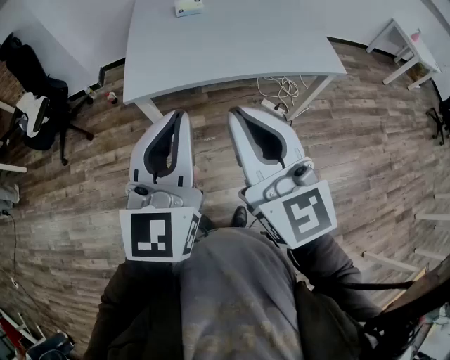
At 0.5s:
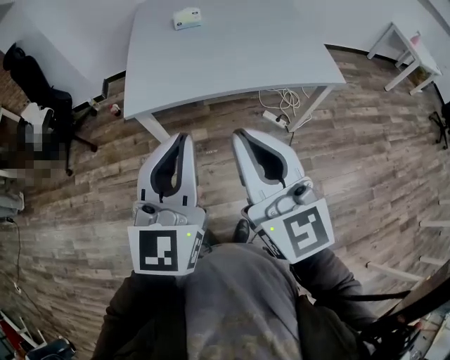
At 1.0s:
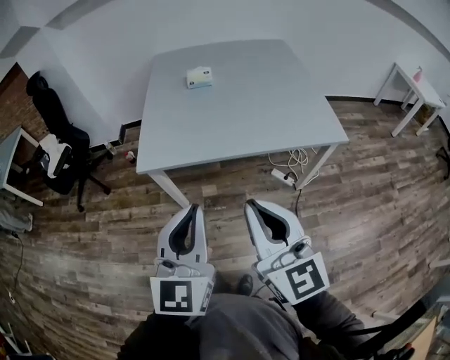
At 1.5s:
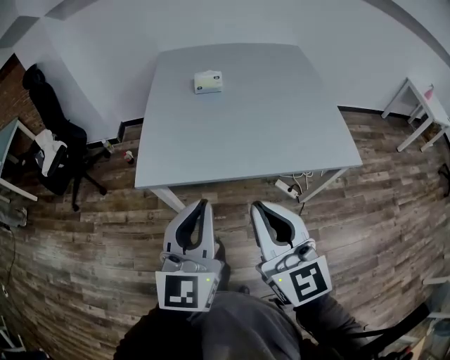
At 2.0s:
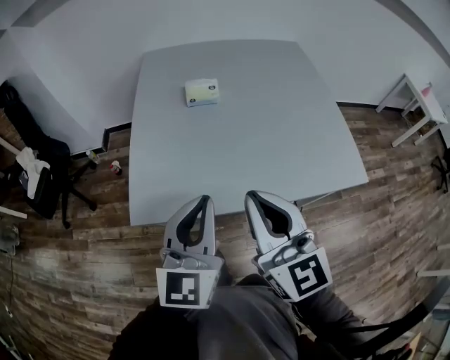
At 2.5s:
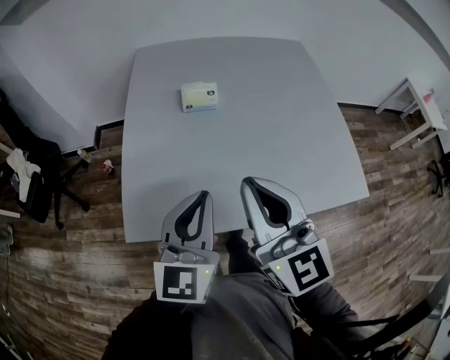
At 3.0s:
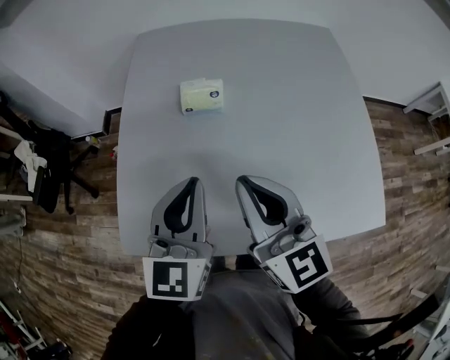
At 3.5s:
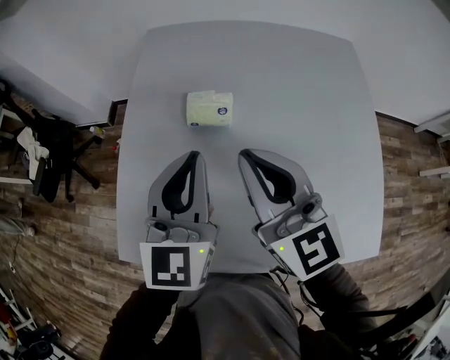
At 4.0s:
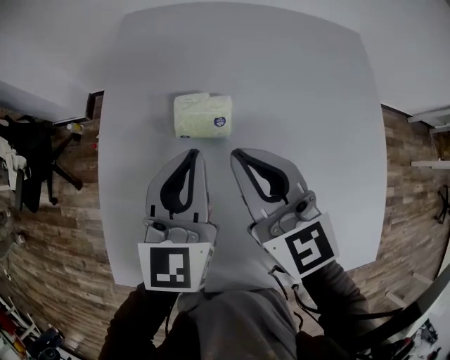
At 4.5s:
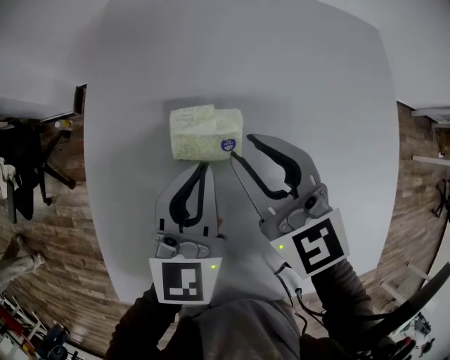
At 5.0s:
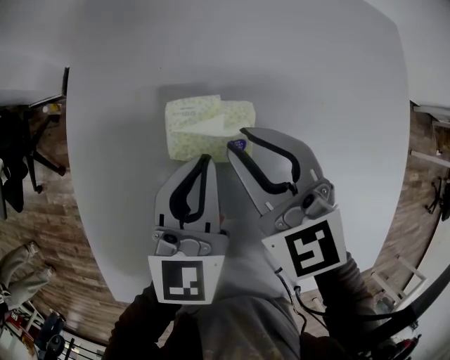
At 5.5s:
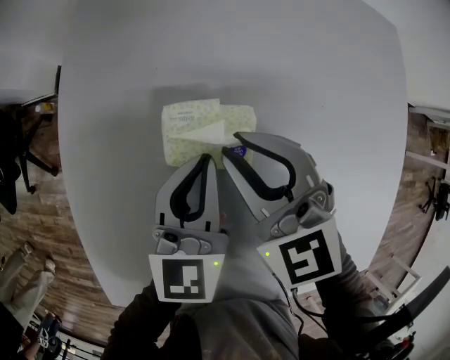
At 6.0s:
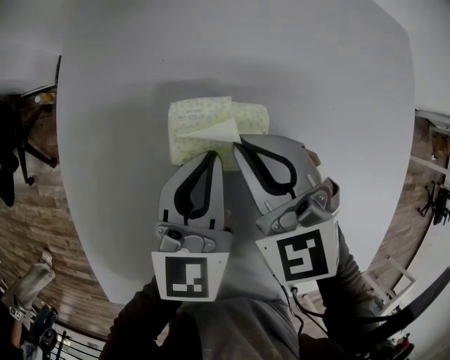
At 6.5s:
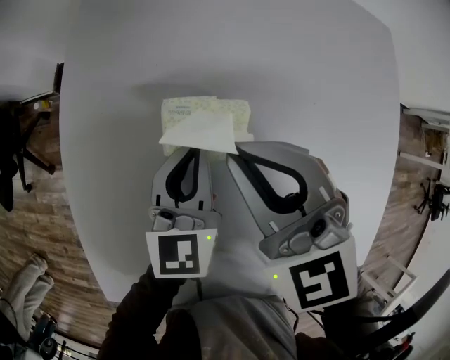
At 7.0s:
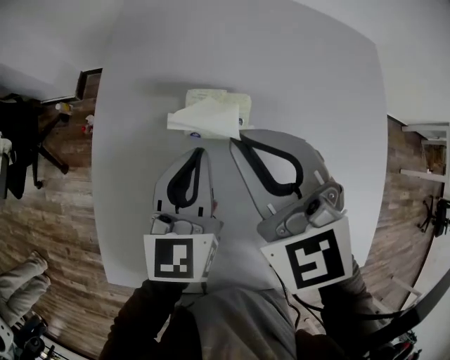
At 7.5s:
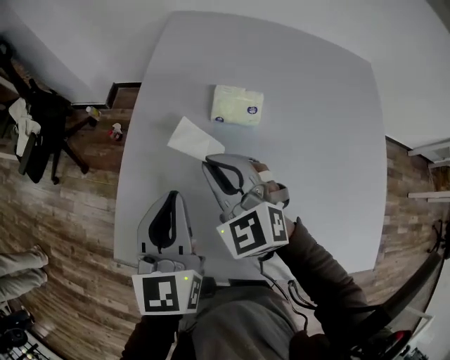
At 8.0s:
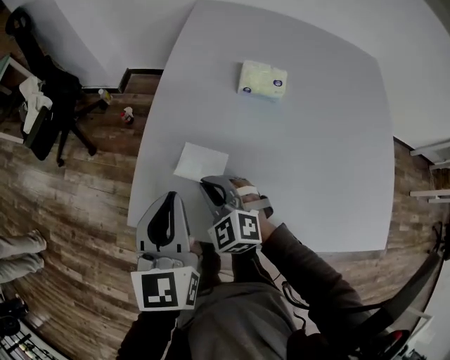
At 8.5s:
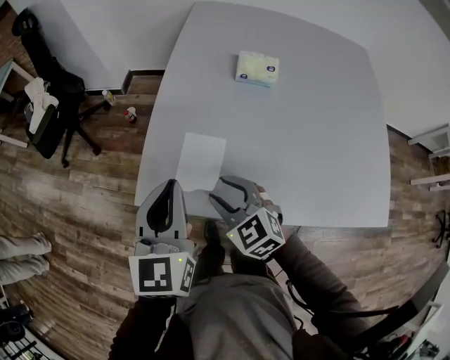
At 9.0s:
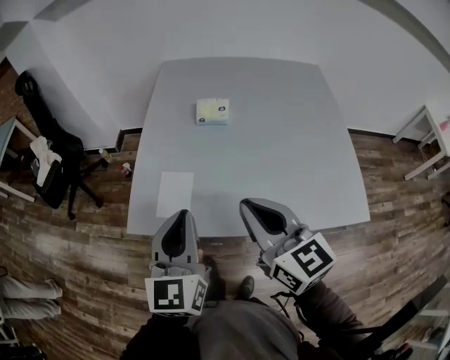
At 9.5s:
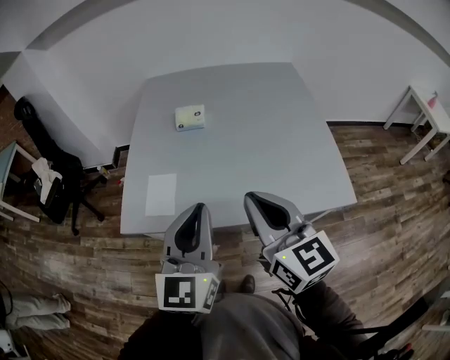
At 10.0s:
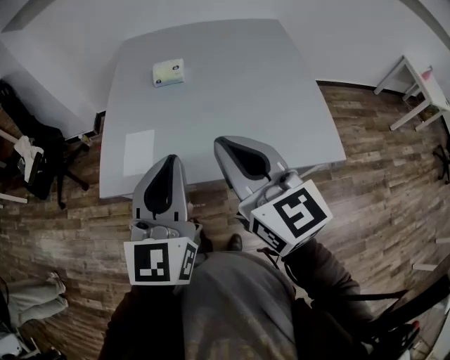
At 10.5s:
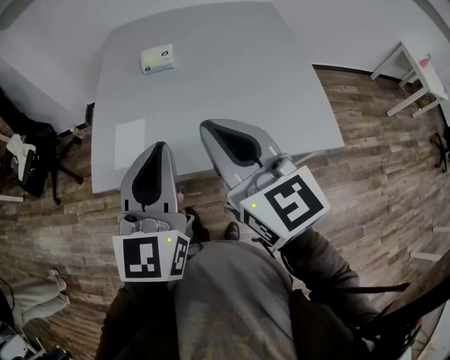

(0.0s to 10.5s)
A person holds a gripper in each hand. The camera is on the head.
0.0s - 2.0s: Both grippers travel together forward, some 35 cm.
2.0s - 4.0s: Both grippers are carried forward, some 50 cm.
4.0s - 6.5s: The left gripper shifts about 20 cm downward and forward, while the right gripper travels forward and downward by roughly 15 cm, and swivels some 30 degrees.
6.5s - 8.5s: The two grippers travel together, backward and to the left, approximately 50 cm. The left gripper moves upward, approximately 15 cm. Meanwhile the right gripper opens its fingers.
8.5s - 10.5s: The left gripper moves to the right, backward and upward, some 30 cm, and swivels about 20 degrees, while the right gripper heads upward, to the right and backward, covering some 40 cm, tilts its fingers roughly 30 degrees upward, and closes.

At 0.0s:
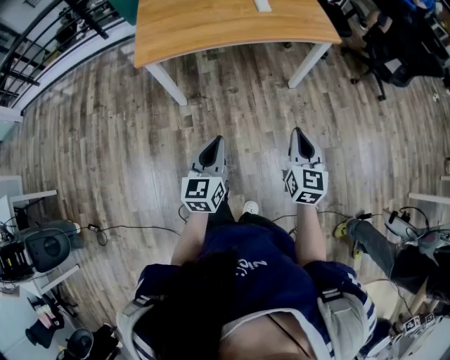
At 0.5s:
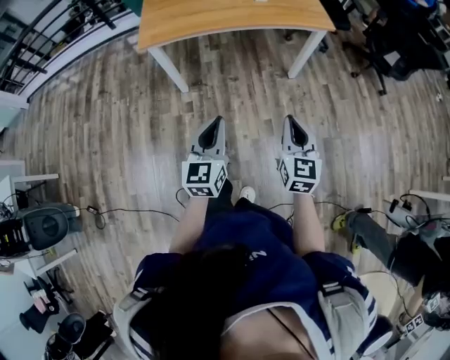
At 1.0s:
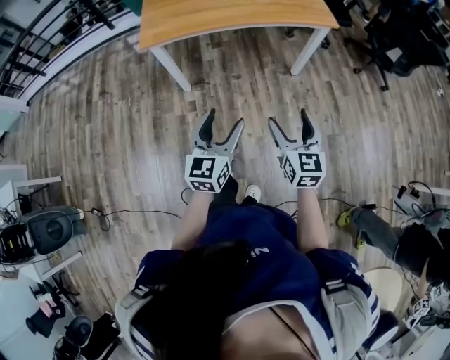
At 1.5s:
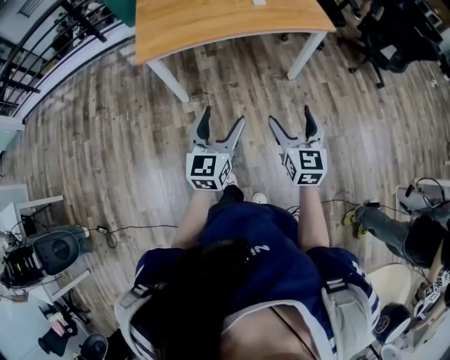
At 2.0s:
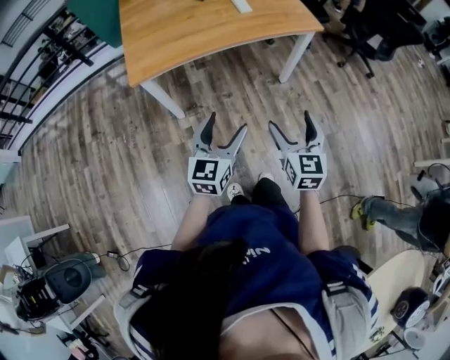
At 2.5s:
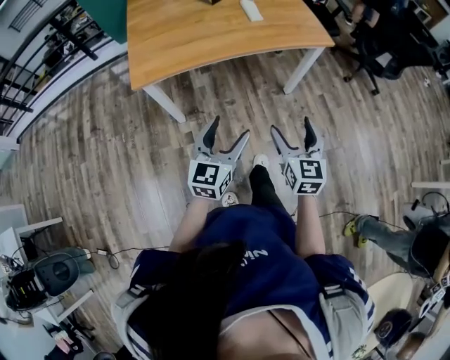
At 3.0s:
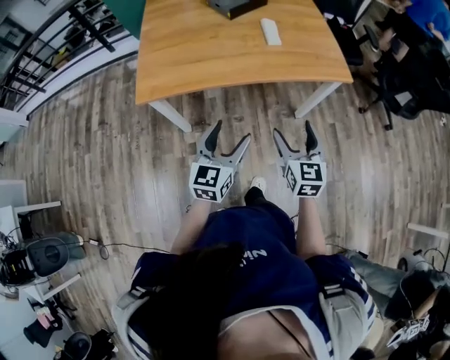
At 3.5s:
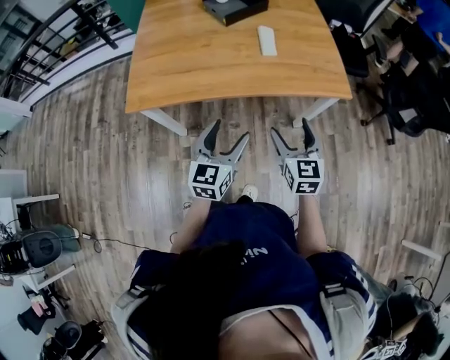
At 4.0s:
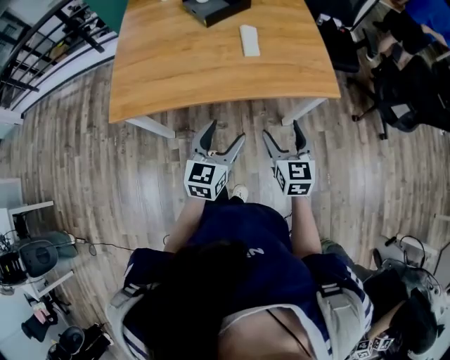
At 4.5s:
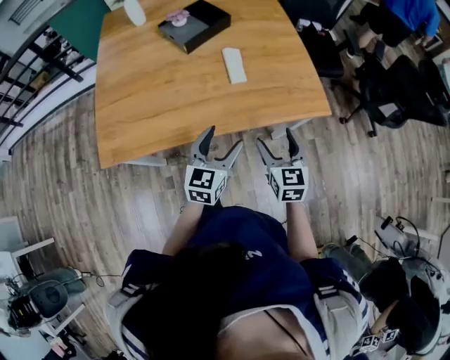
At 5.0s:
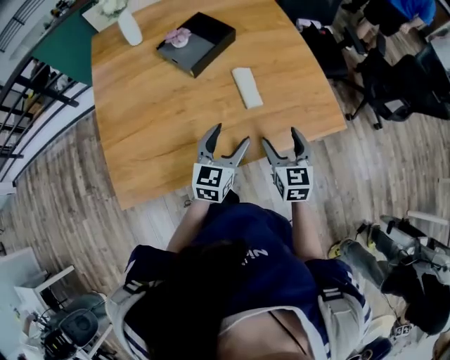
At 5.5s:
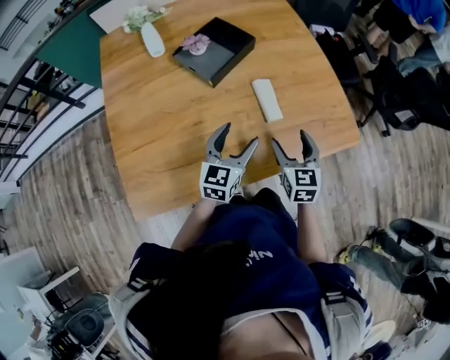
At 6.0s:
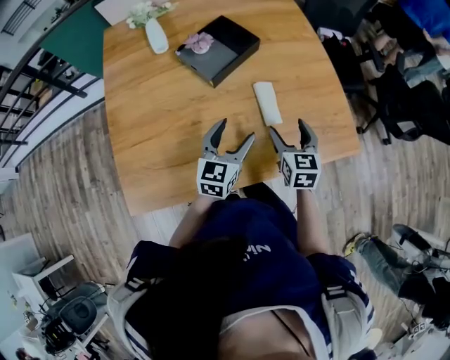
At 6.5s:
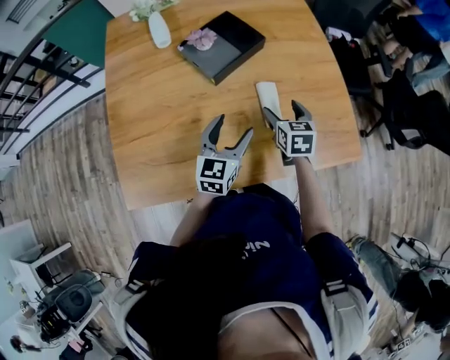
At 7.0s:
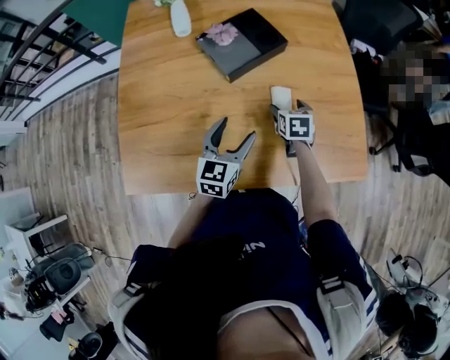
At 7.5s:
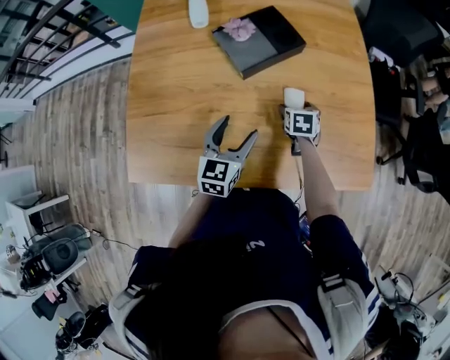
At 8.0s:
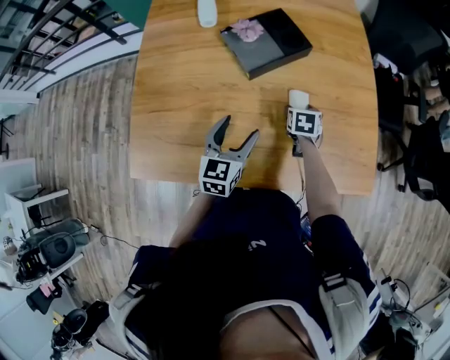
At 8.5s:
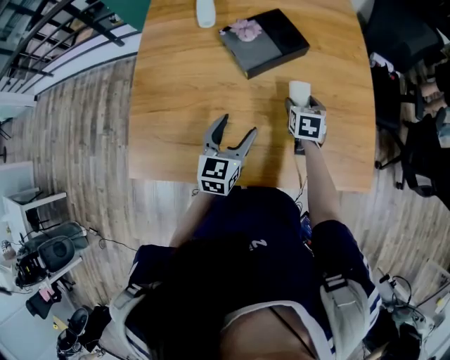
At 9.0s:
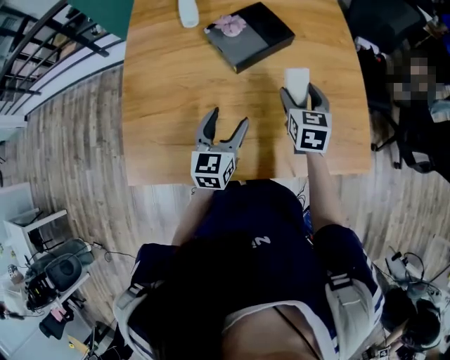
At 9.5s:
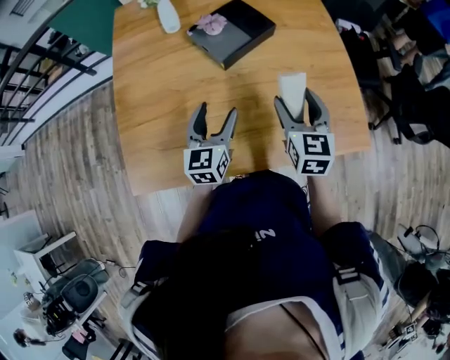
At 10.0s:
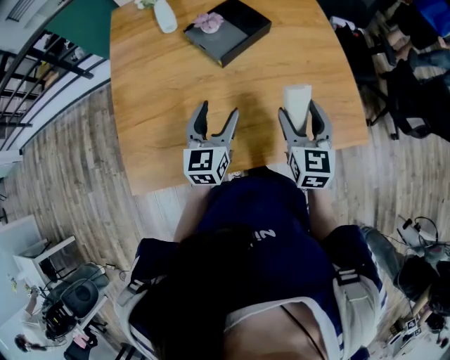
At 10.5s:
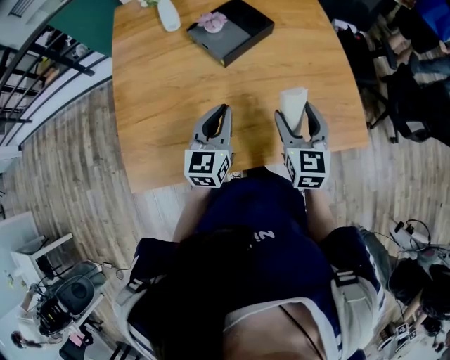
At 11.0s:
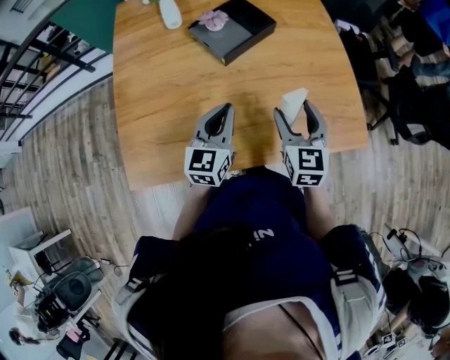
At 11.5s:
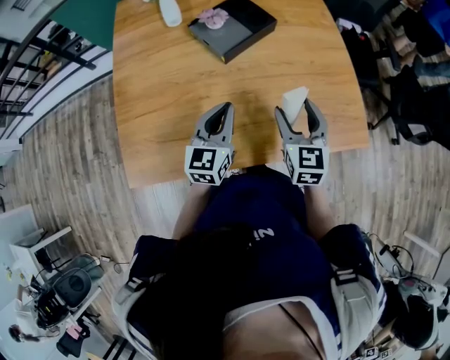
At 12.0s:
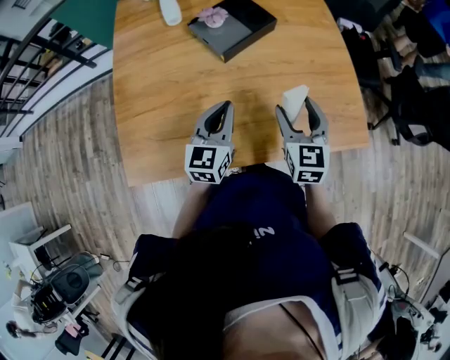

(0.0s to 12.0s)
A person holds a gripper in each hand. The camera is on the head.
0.0s - 2.0s: The right gripper moves to the left, approximately 5 cm, and opens. The left gripper moves some 5 cm, and opens.
2.0s - 4.0s: The two grippers go some 30 cm forward.
4.0s - 6.0s: The grippers both shift forward and to the left by some 35 cm.
6.0s - 8.0s: The right gripper shifts approximately 20 cm downward and forward, and tilts its fingers some 30 degrees downward. Meanwhile the left gripper changes place by about 5 cm.
8.0s - 10.0s: The right gripper moves upward and backward, some 25 cm, and tilts its fingers approximately 40 degrees upward. The left gripper changes place by about 5 cm.
10.0s - 12.0s: The left gripper closes its fingers.

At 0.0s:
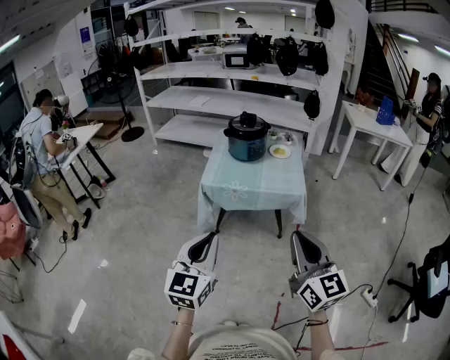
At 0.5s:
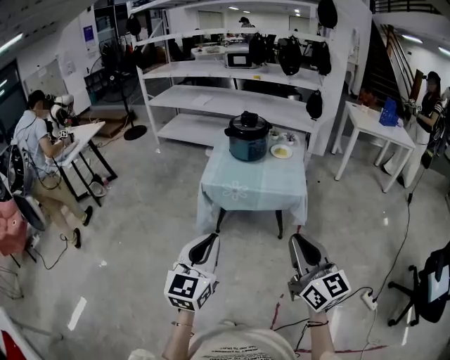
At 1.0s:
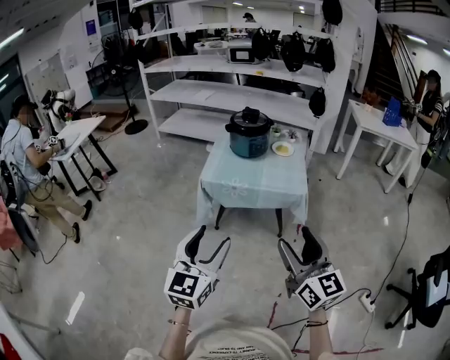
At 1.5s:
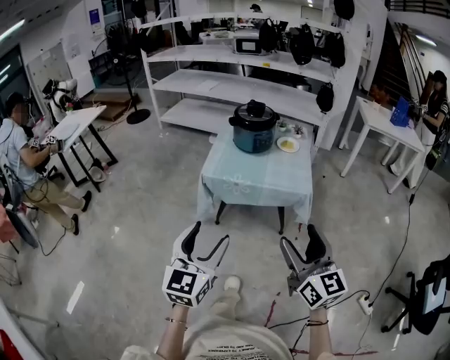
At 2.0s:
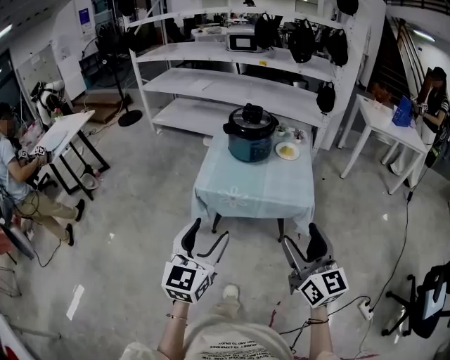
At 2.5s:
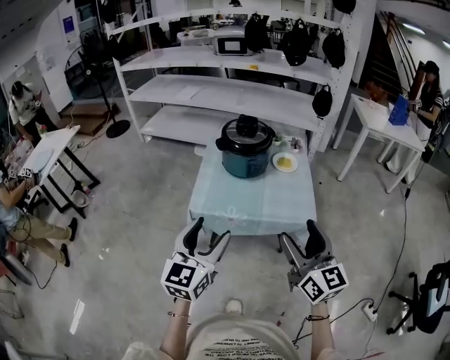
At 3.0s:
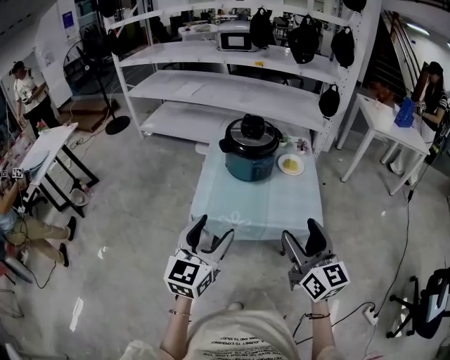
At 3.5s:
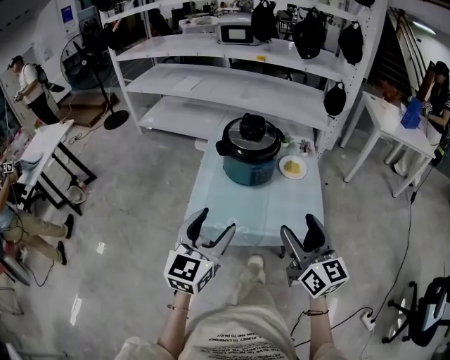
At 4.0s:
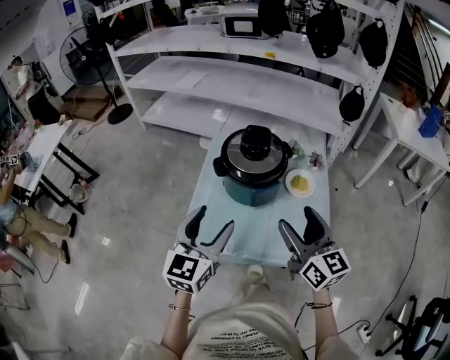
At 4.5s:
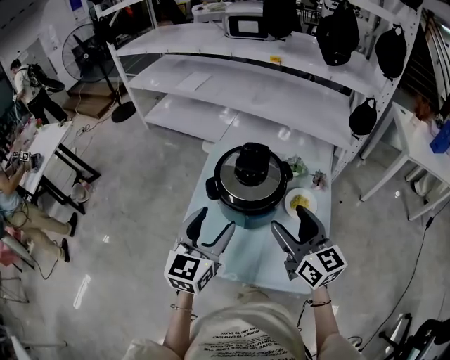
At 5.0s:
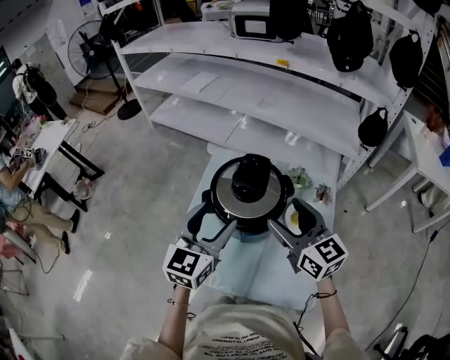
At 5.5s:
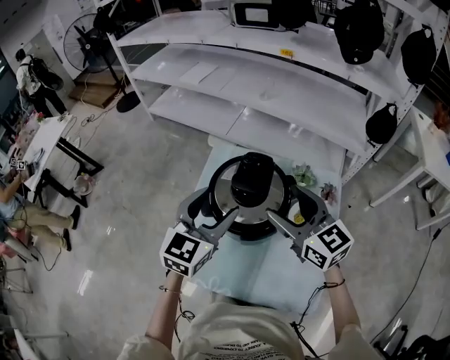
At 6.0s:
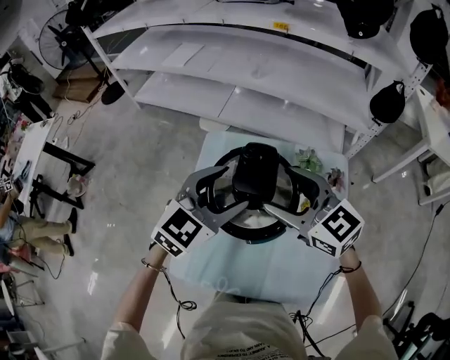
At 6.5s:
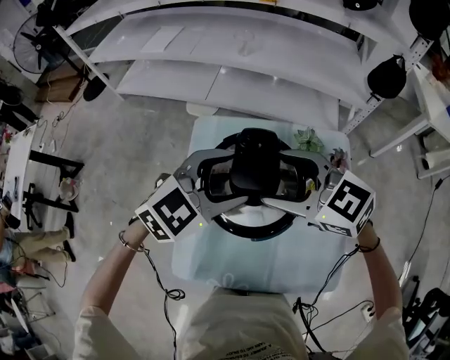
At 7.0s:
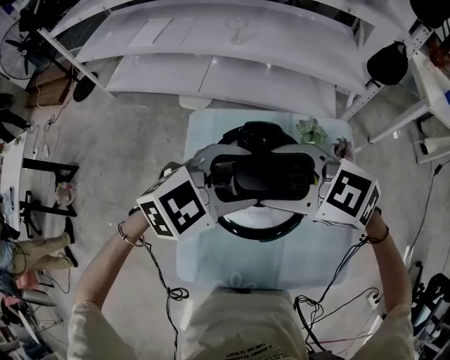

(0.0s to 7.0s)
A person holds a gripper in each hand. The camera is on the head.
0.0s - 2.0s: The grippers both shift forward by some 15 cm. The left gripper opens. Meanwhile the right gripper opens its fingers.
2.0s - 3.5s: The grippers both shift forward by about 25 cm.
3.5s - 5.0s: Both grippers travel together forward, approximately 30 cm. The right gripper swivels some 20 degrees.
5.0s - 7.0s: The left gripper moves some 15 cm, and turns by roughly 70 degrees, while the right gripper moves roughly 15 cm, and changes its angle by approximately 40 degrees.
